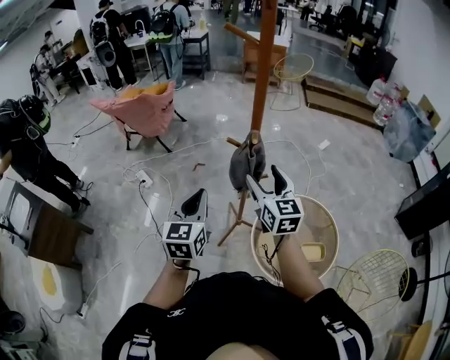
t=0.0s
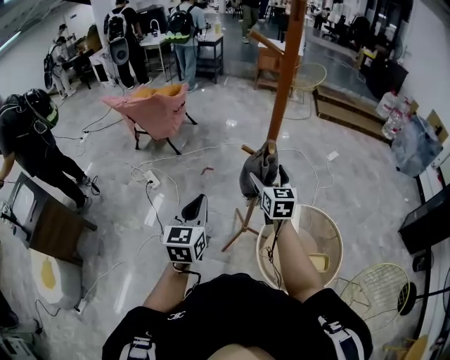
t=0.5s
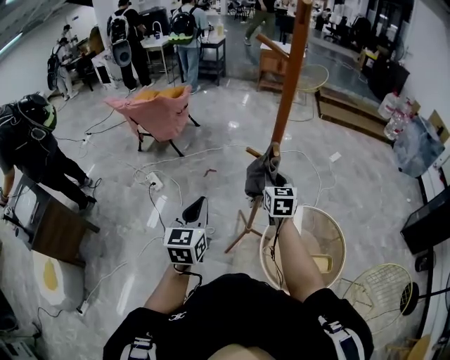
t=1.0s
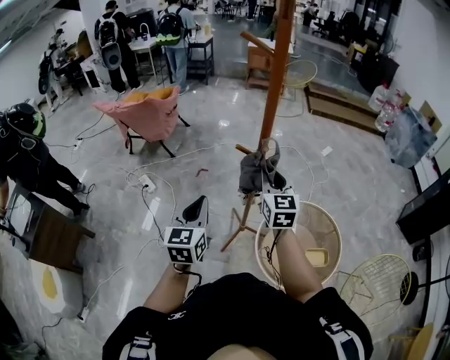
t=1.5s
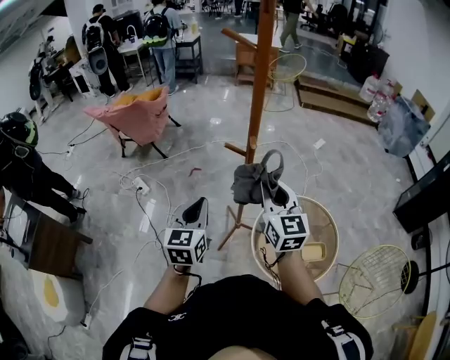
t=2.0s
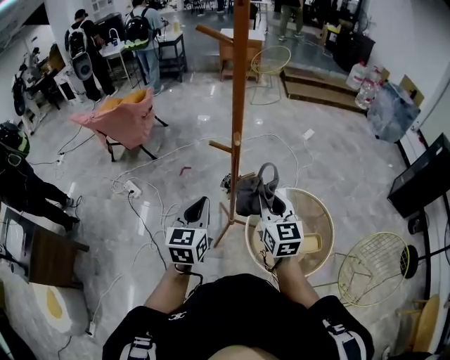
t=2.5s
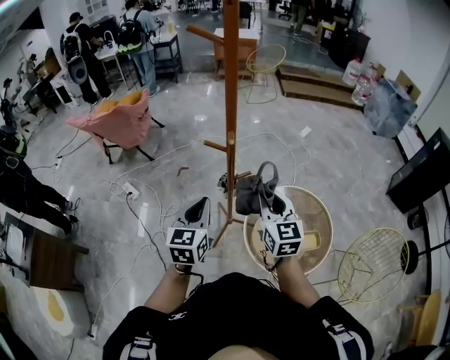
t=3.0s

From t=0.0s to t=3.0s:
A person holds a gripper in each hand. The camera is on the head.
From t=0.0s to t=1.5s: The right gripper closes.
From t=1.5s to t=3.0s: The right gripper shifts about 10 cm backward and to the right; the left gripper shifts some 10 cm to the right.

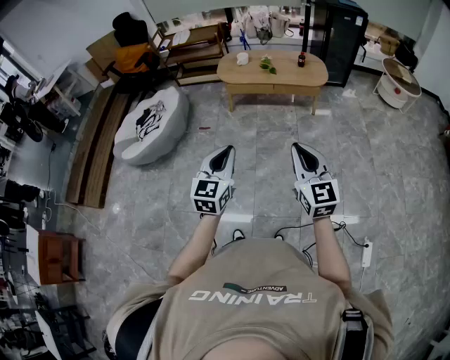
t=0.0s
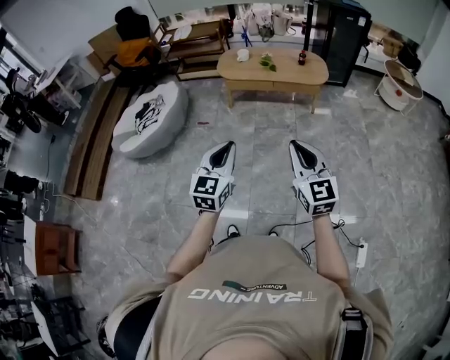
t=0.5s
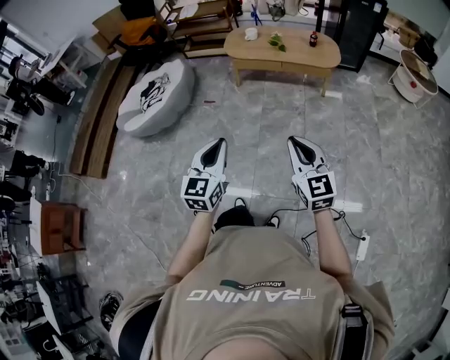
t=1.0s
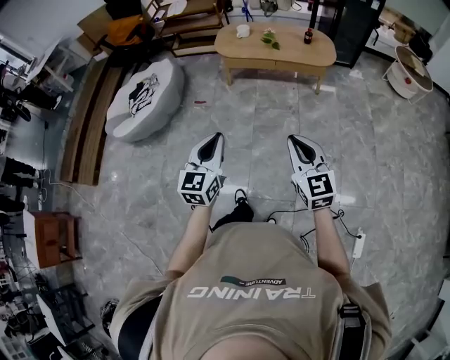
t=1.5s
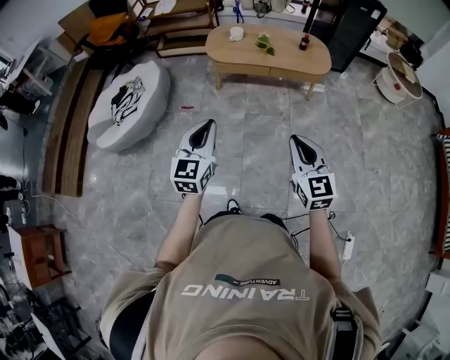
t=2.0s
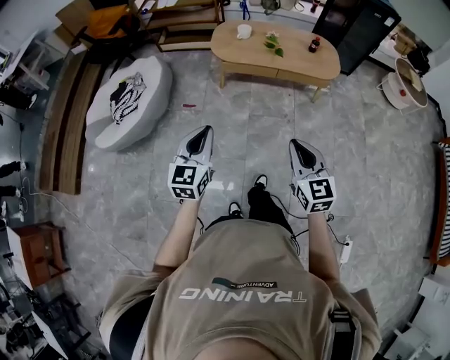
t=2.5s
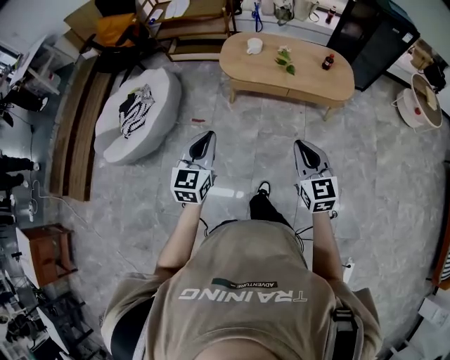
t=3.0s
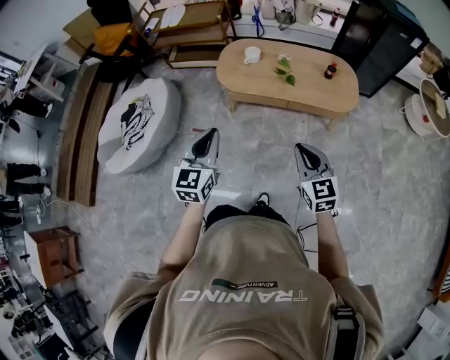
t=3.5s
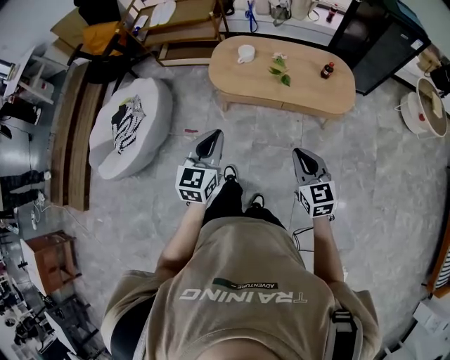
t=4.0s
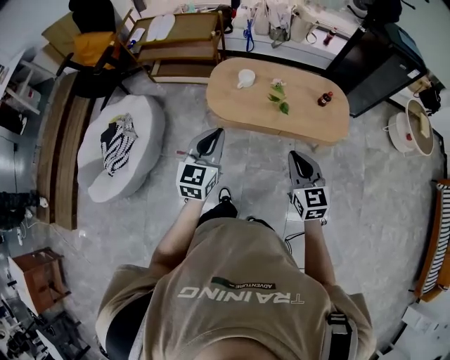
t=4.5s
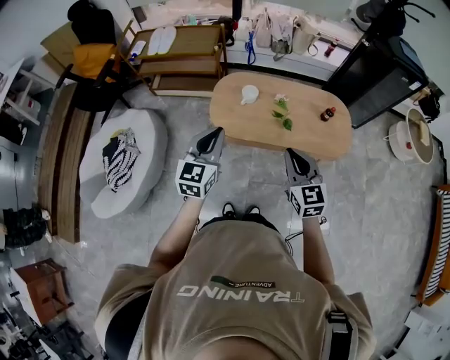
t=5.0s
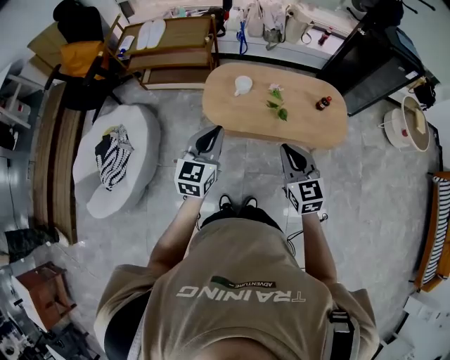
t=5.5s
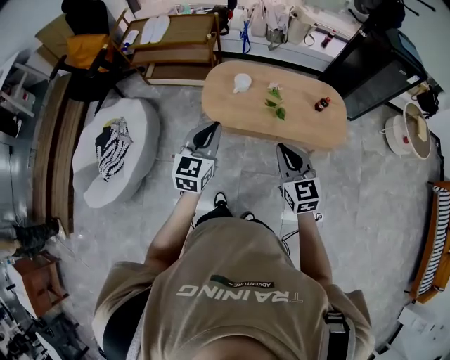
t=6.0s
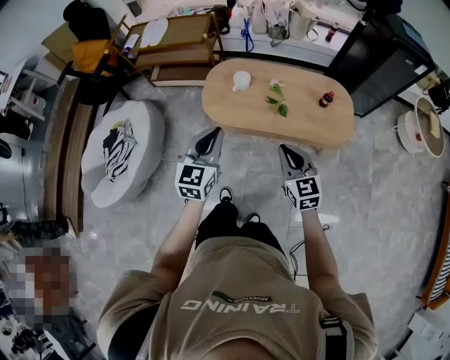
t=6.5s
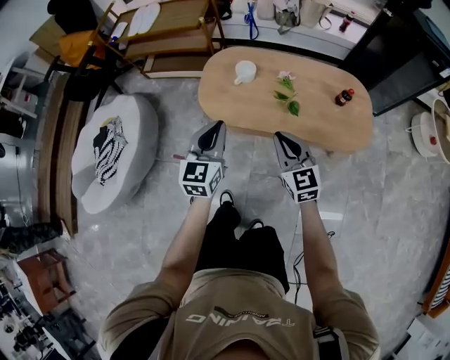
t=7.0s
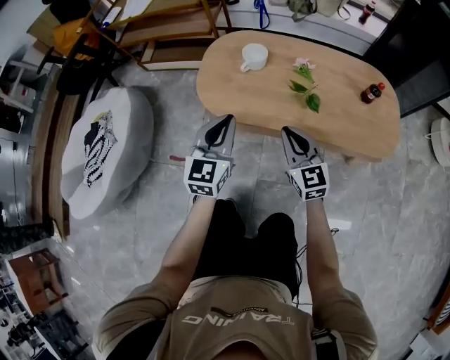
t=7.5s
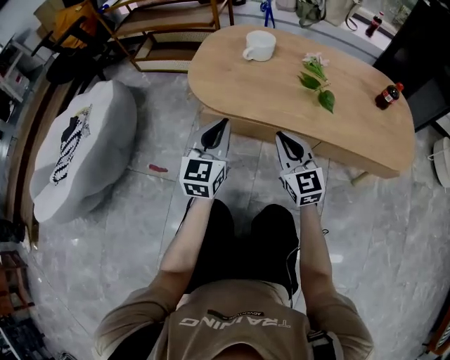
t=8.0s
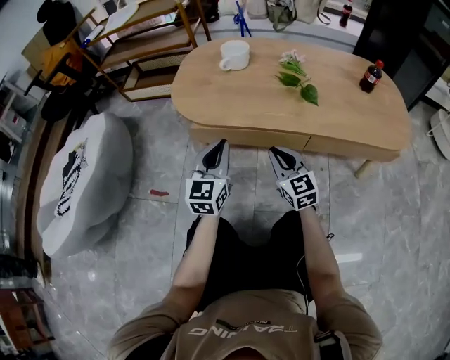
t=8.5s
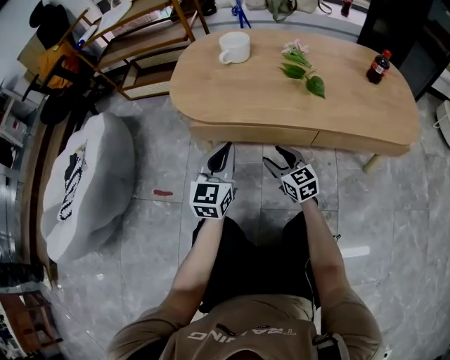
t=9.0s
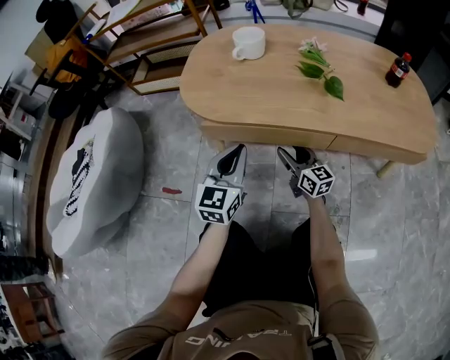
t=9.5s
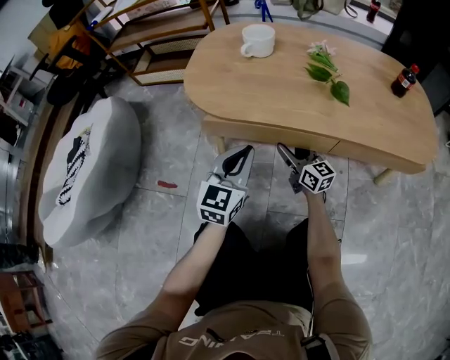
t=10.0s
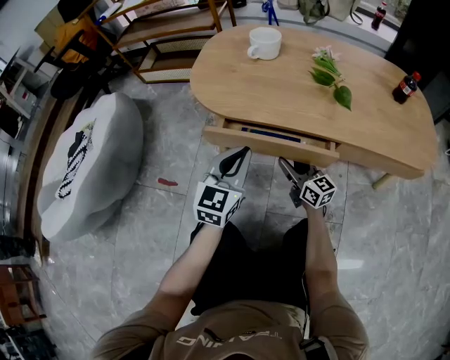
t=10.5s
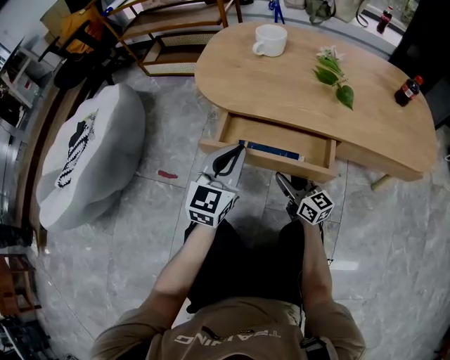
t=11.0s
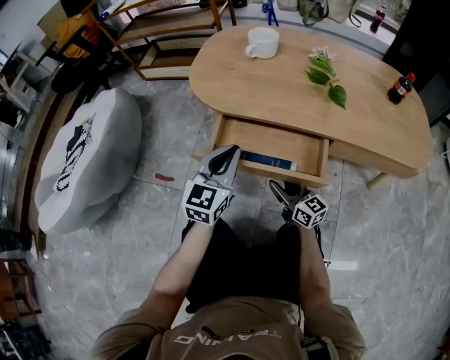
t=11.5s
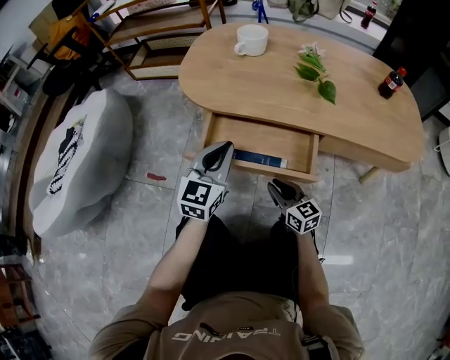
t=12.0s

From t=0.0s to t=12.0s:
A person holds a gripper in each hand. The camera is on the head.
From t=0.0s to t=2.0s: Both grippers move forward, approximately 20 cm.
From t=2.0s to t=4.0s: The grippers both shift forward by some 35 cm.
From t=4.0s to t=6.0s: The left gripper is displaced forward by about 20 cm, while the right gripper is displaced forward and to the left by approximately 20 cm.
From t=6.0s to t=8.0s: The two grippers go some 50 cm downward.
From t=8.0s to t=10.0s: The right gripper shifts about 20 cm downward, changes its angle by about 30 degrees, and opens. The left gripper travels downward by some 10 cm.
From t=10.0s to t=12.0s: The right gripper travels backward by approximately 15 cm, and closes up.

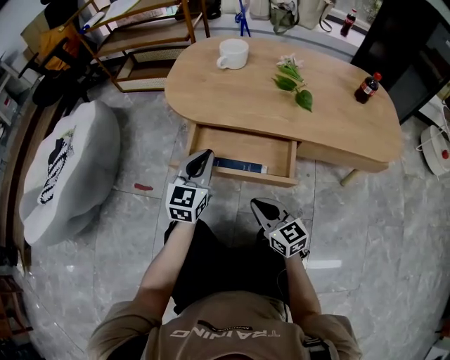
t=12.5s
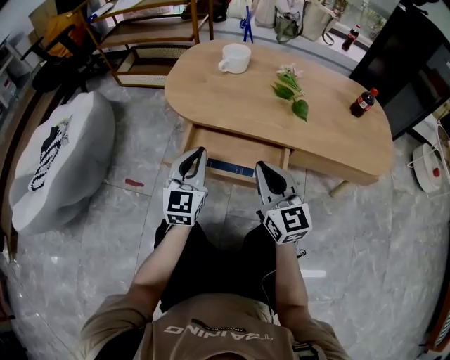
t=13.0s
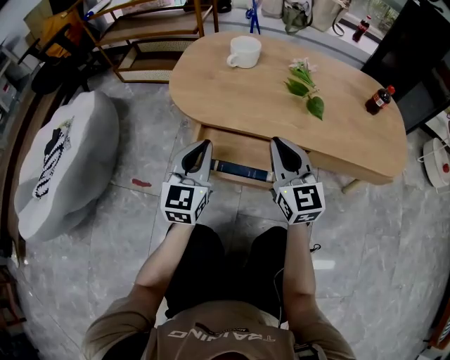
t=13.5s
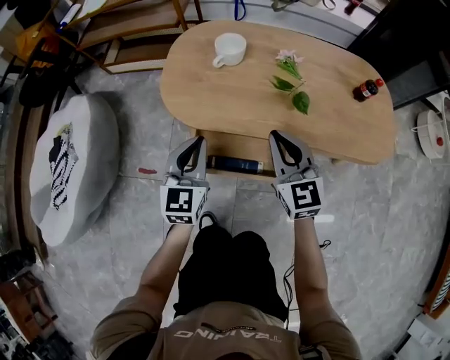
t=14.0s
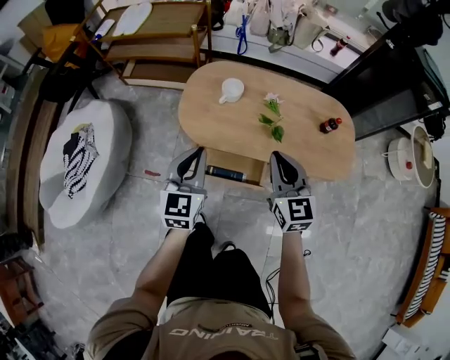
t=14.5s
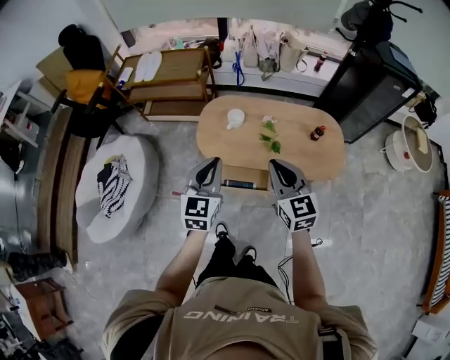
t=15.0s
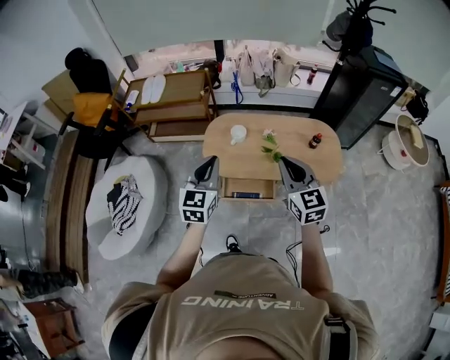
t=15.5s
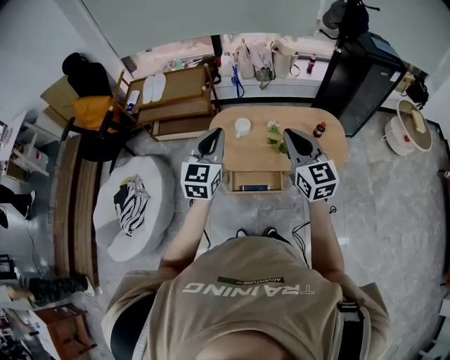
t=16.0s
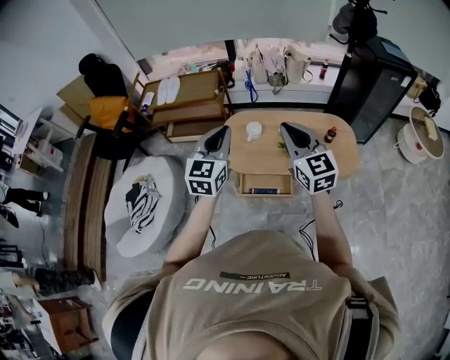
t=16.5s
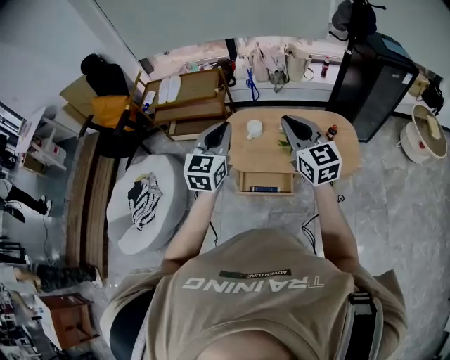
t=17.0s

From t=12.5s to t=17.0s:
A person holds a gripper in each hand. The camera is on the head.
From t=12.5s to t=14.5s: The grippers both shift upward by some 40 cm. The right gripper rotates some 20 degrees.
From t=14.5s to t=17.0s: Both grippers move upward, roughly 30 cm.

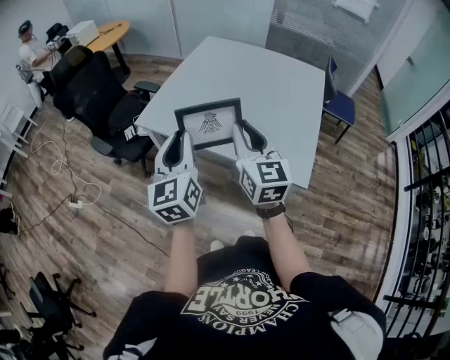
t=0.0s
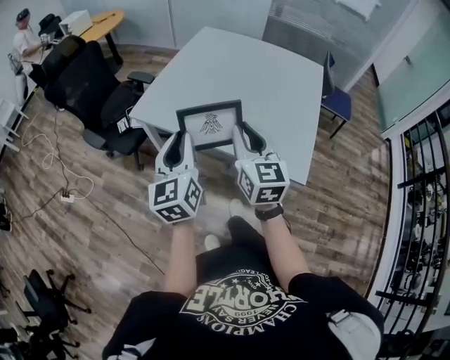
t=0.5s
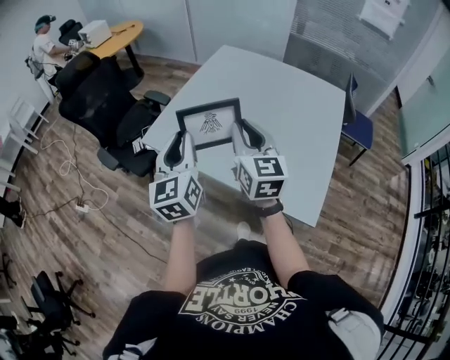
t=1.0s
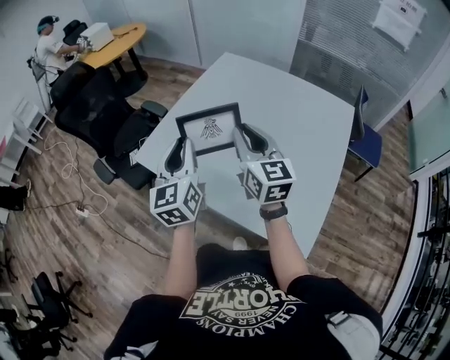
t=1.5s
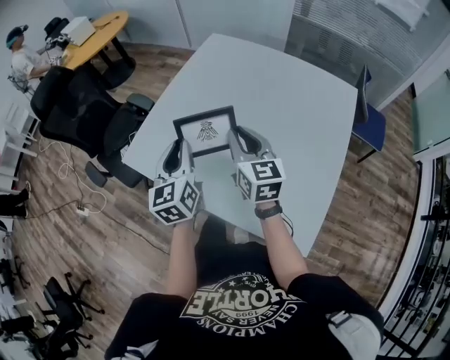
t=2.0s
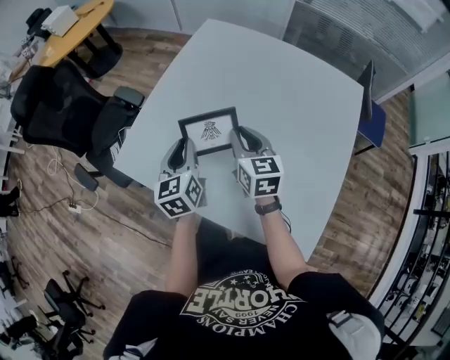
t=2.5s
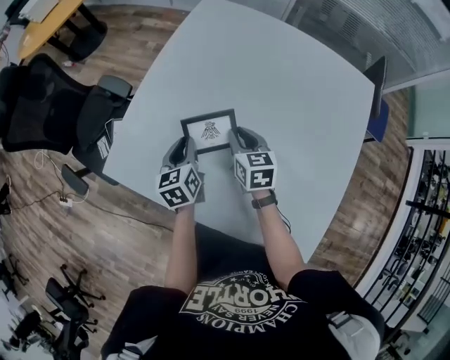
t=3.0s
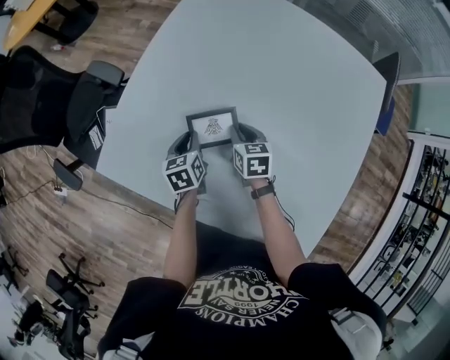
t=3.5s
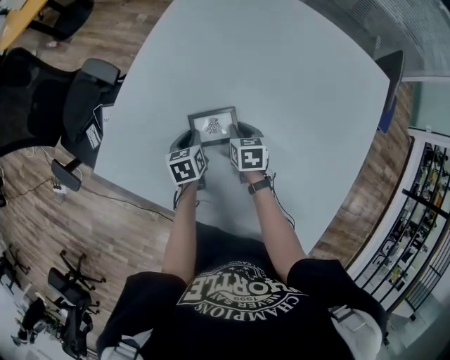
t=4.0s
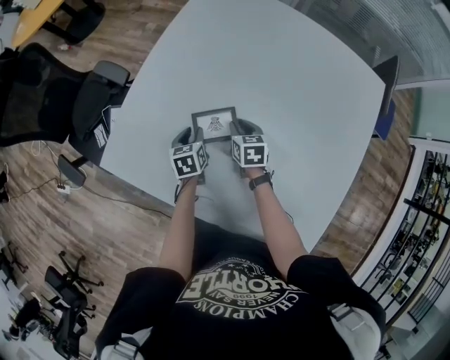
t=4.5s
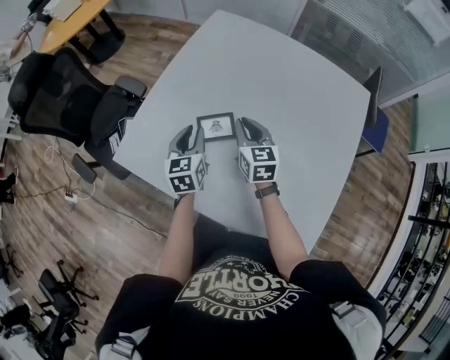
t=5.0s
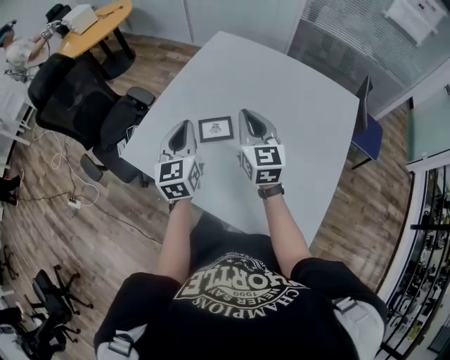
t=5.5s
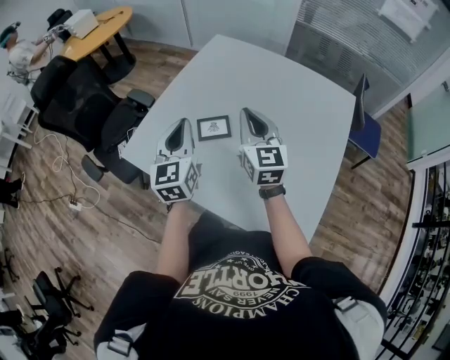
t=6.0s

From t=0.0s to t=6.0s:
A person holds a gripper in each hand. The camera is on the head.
From t=0.0s to t=2.0s: Both grippers move forward, roughly 40 cm.
From t=2.0s to t=4.0s: Both grippers move downward and forward, about 40 cm. The right gripper points its fingers some 40 degrees further downward; the left gripper angles its fingers downward, by about 40 degrees.
From t=4.0s to t=6.0s: The grippers both shift upward and backward by some 50 cm. The left gripper tips its fingers upward by roughly 50 degrees. The right gripper angles its fingers upward, by some 50 degrees.

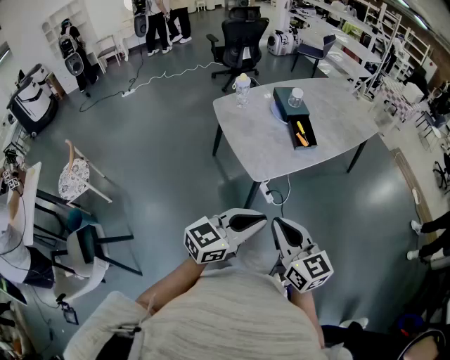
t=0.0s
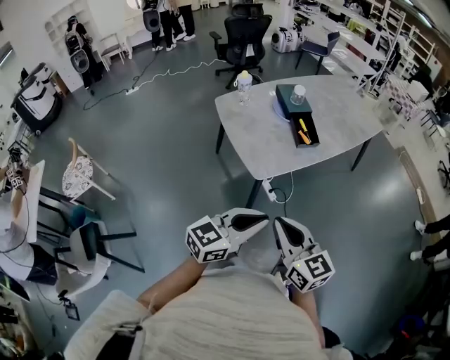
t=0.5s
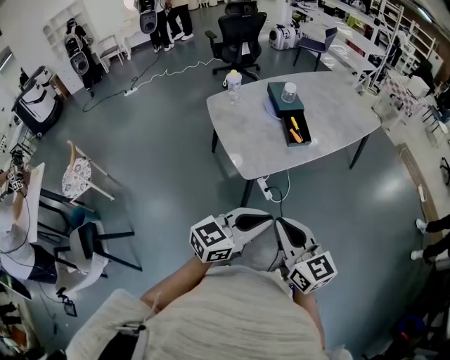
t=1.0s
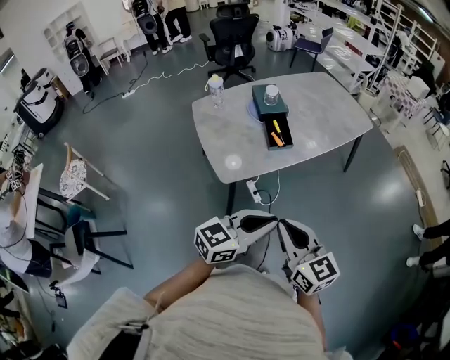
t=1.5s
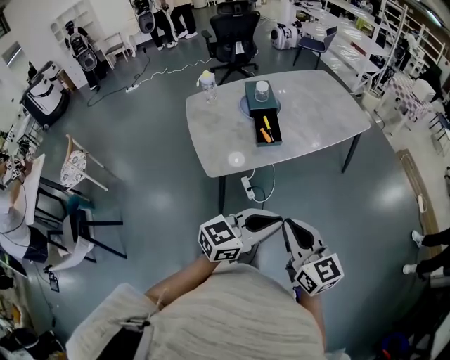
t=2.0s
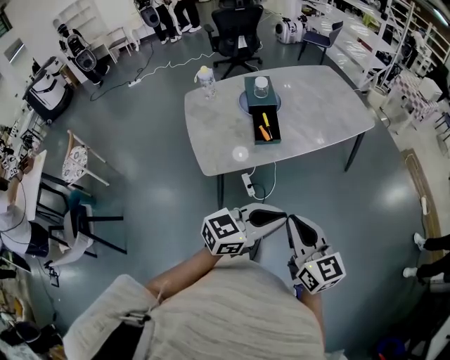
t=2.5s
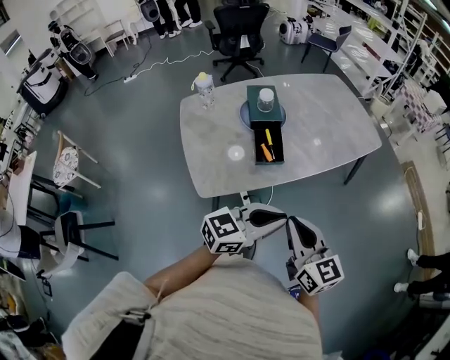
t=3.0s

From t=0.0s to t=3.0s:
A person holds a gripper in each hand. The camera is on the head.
From t=0.0s to t=1.5s: The two grippers go some 20 cm to the right and forward.
From t=1.5s to t=3.0s: The grippers both shift forward by about 20 cm.
